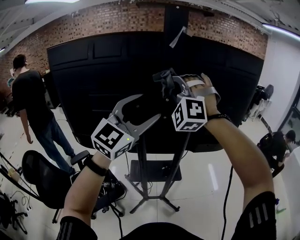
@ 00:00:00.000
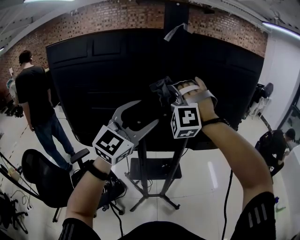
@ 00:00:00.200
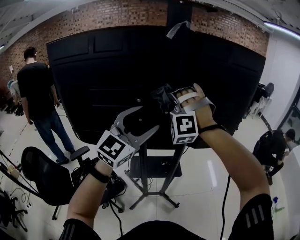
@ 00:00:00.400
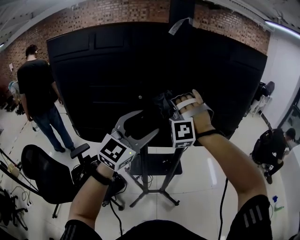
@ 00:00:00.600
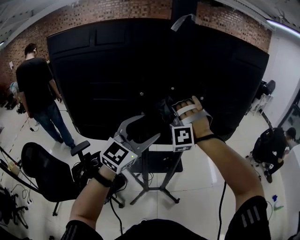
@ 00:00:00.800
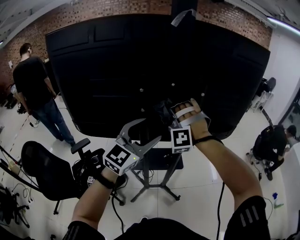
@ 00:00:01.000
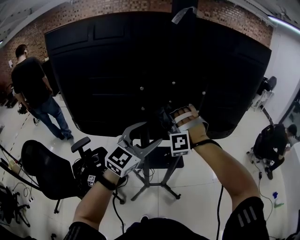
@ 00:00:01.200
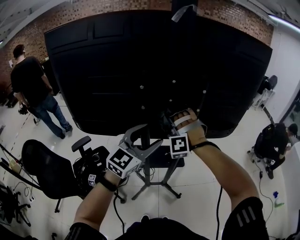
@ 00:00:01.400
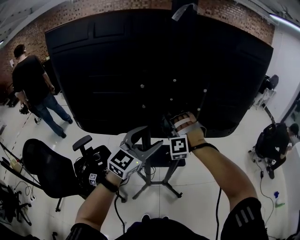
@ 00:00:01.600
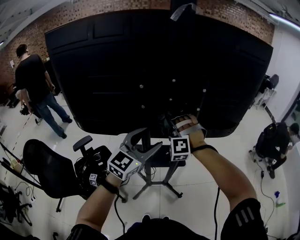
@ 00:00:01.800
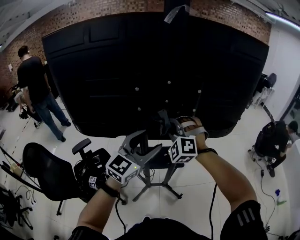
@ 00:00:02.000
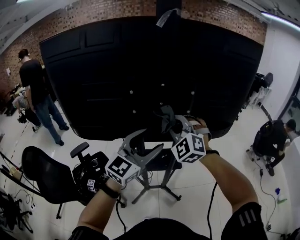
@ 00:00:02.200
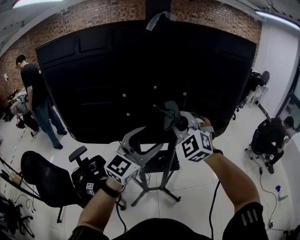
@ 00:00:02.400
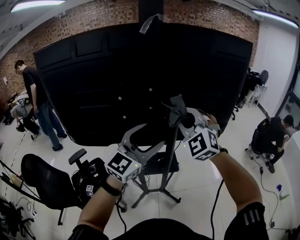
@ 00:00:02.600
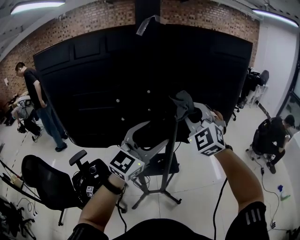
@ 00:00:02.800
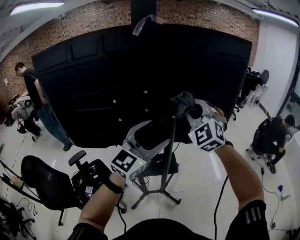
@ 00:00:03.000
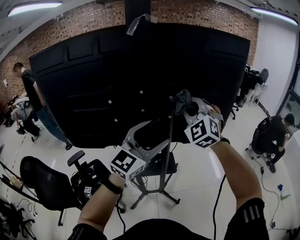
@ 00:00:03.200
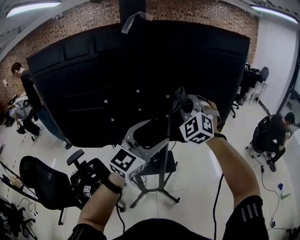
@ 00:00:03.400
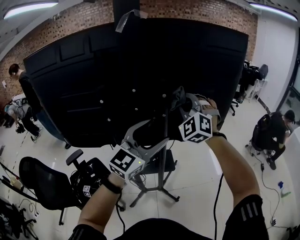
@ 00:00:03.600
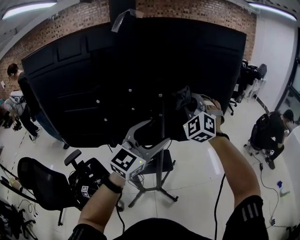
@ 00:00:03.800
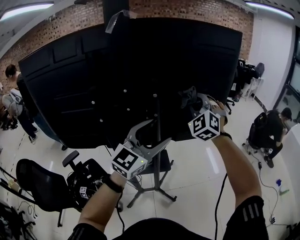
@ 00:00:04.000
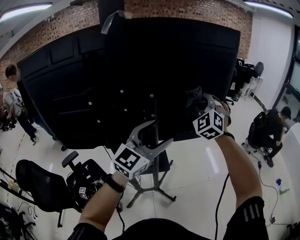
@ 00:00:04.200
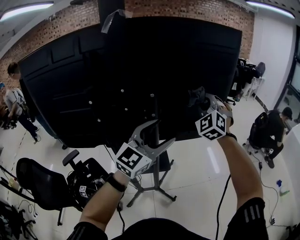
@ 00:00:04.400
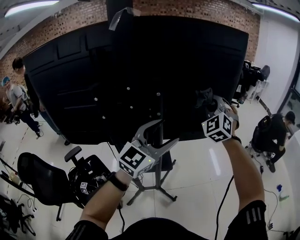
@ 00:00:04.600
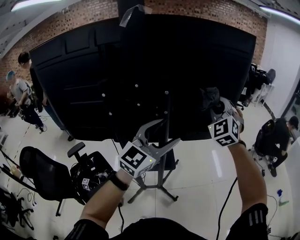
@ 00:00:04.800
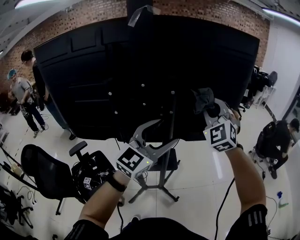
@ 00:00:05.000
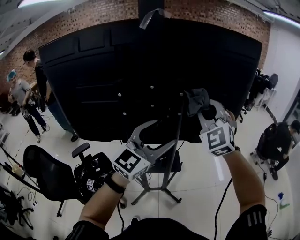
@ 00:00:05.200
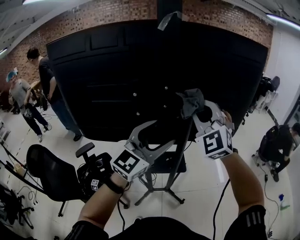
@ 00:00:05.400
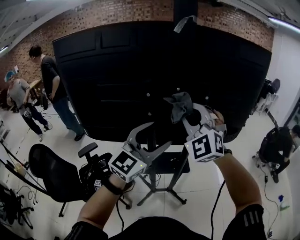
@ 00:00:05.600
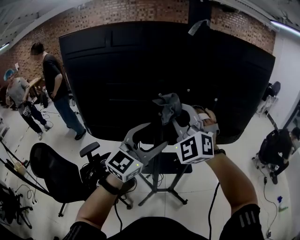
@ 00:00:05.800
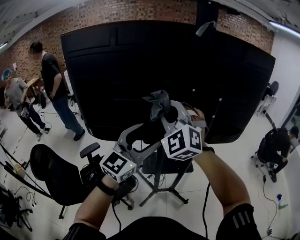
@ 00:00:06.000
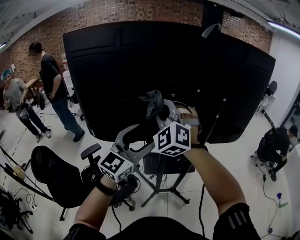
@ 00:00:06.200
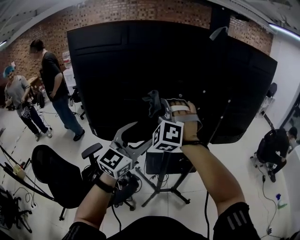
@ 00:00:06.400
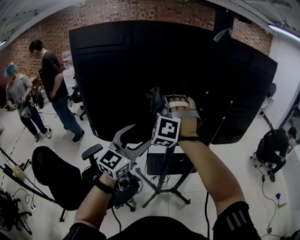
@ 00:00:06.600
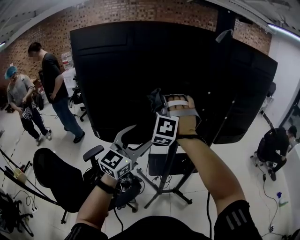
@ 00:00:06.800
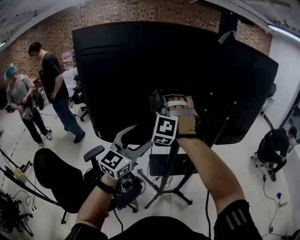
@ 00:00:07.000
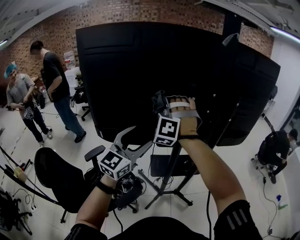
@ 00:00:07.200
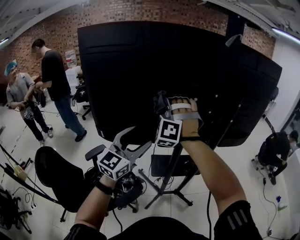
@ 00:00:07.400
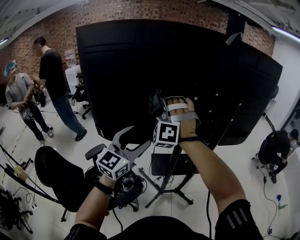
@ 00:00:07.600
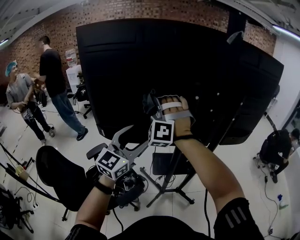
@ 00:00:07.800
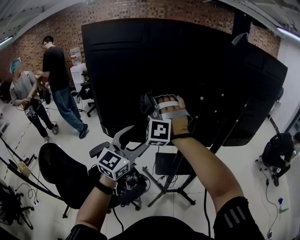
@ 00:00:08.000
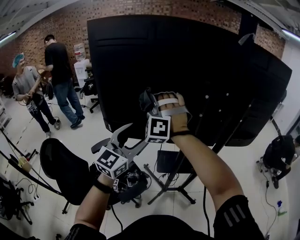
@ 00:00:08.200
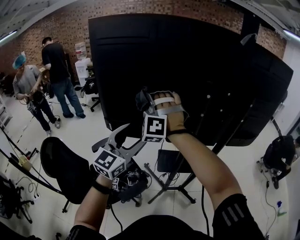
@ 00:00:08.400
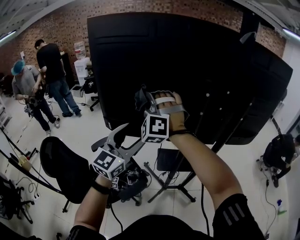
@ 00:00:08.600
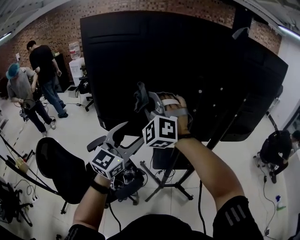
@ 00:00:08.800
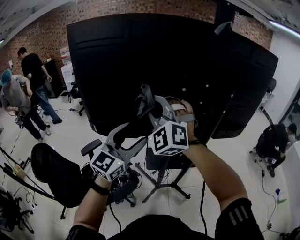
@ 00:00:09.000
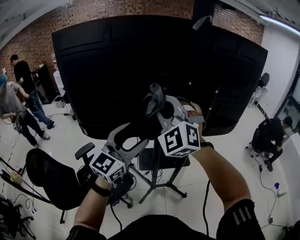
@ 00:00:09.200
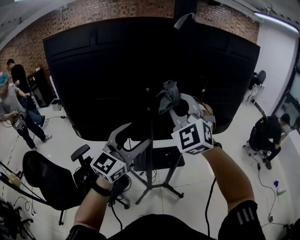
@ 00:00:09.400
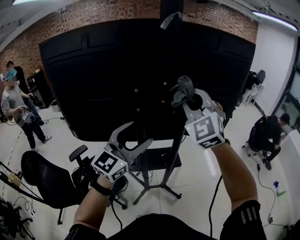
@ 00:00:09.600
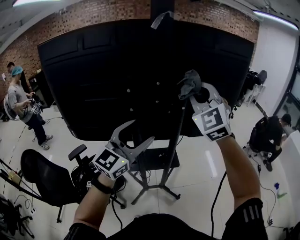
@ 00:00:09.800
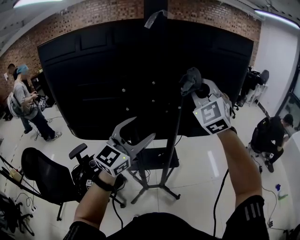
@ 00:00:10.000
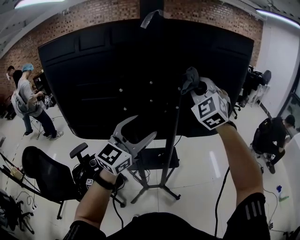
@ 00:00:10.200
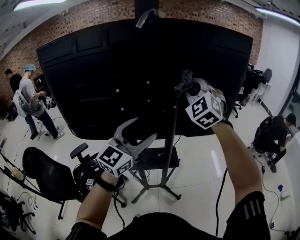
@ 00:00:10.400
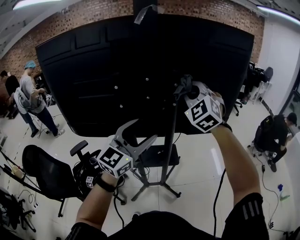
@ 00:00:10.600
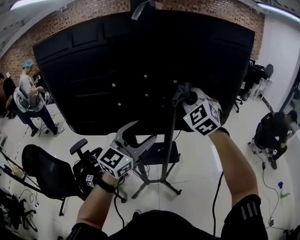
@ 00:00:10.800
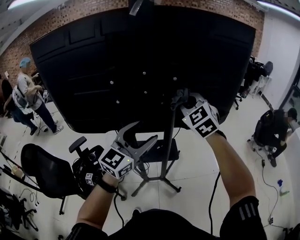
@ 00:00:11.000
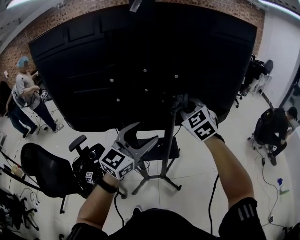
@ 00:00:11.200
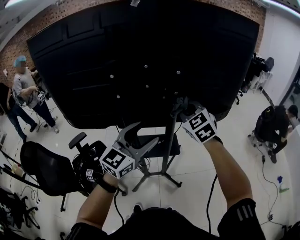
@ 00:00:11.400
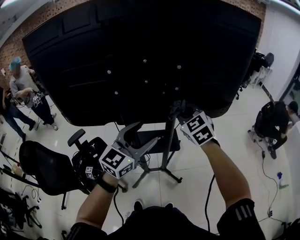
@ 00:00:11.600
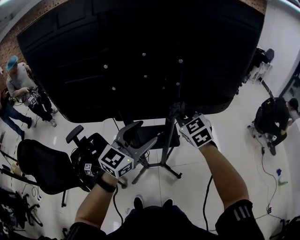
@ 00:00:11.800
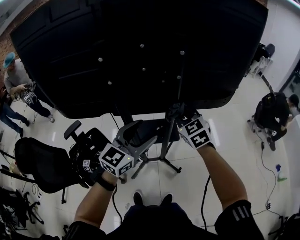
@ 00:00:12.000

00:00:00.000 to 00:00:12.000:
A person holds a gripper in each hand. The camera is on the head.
00:00:00.000 to 00:00:01.600: Both grippers travel together downward, some 25 cm. The right gripper changes its angle by roughly 30 degrees.
00:00:01.600 to 00:00:03.000: The right gripper goes some 25 cm upward and to the right, and twists roughly 50 degrees clockwise, seen from behind. Meanwhile the left gripper goes roughly 15 cm to the right and upward.
00:00:03.000 to 00:00:04.400: The left gripper moves to the right, approximately 10 cm. Meanwhile the right gripper heads to the right and forward, covering some 15 cm.
00:00:04.400 to 00:00:06.000: Both grippers travel together to the left and backward, roughly 35 cm. The right gripper turns by roughly 20 degrees.
00:00:06.000 to 00:00:07.600: The two grippers go approximately 15 cm to the left. The right gripper changes its angle by roughly 40 degrees.
00:00:07.600 to 00:00:09.000: The right gripper heads backward, covering roughly 10 cm, travels to the left and back again, approximately 10 cm each way, and turns by about 30 degrees.
00:00:09.000 to 00:00:10.400: The left gripper travels to the right by approximately 25 cm; the right gripper goes about 40 cm to the right and forward.
00:00:10.400 to 00:00:12.000: The left gripper goes roughly 15 cm downward. The right gripper travels downward by approximately 25 cm, and turns by roughly 40 degrees.

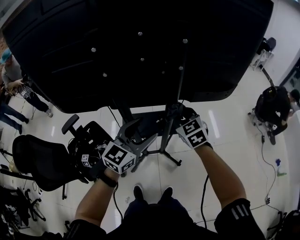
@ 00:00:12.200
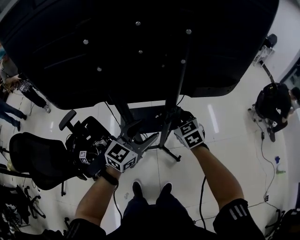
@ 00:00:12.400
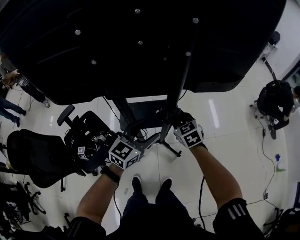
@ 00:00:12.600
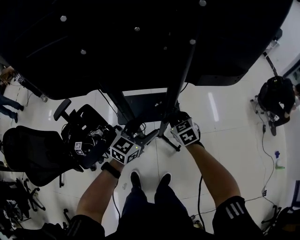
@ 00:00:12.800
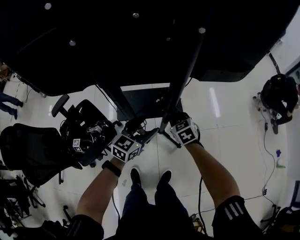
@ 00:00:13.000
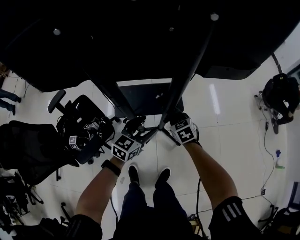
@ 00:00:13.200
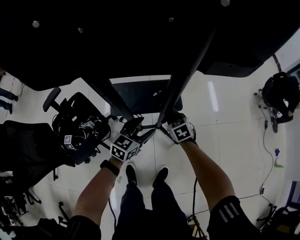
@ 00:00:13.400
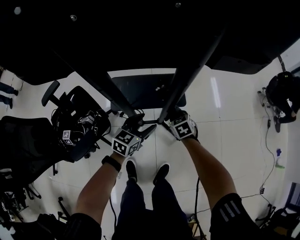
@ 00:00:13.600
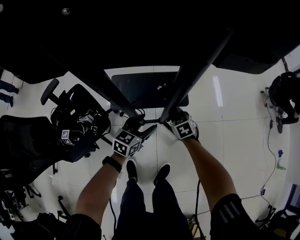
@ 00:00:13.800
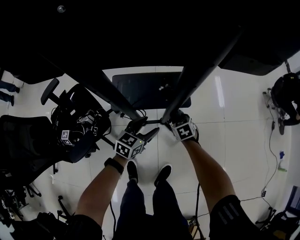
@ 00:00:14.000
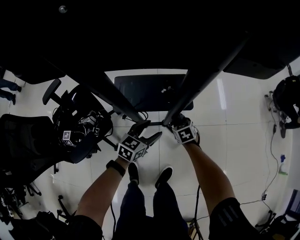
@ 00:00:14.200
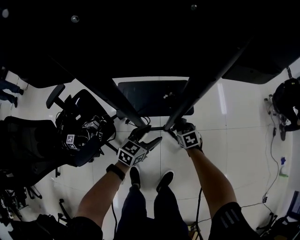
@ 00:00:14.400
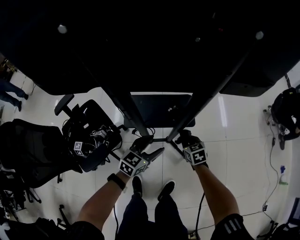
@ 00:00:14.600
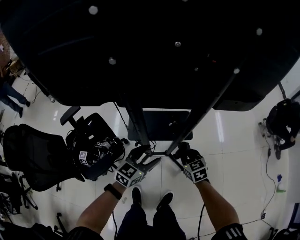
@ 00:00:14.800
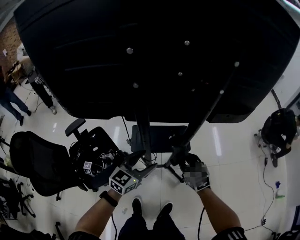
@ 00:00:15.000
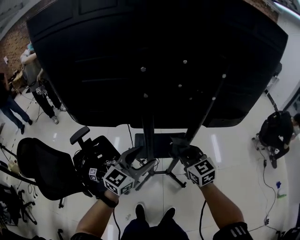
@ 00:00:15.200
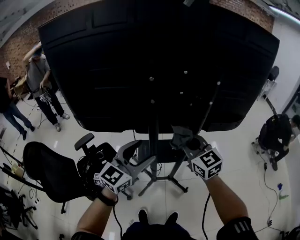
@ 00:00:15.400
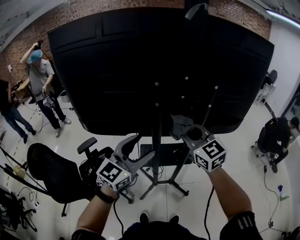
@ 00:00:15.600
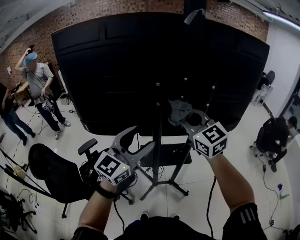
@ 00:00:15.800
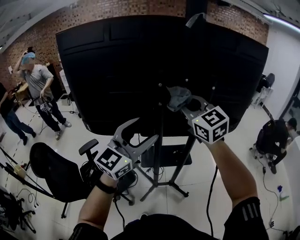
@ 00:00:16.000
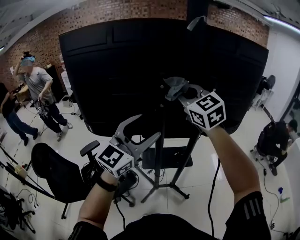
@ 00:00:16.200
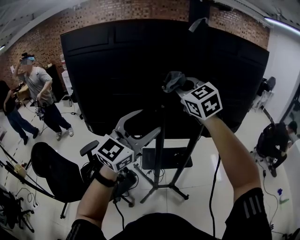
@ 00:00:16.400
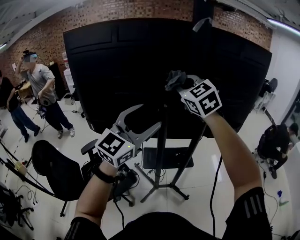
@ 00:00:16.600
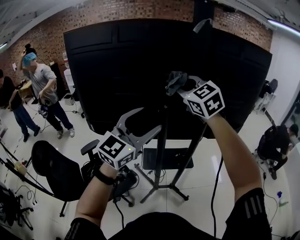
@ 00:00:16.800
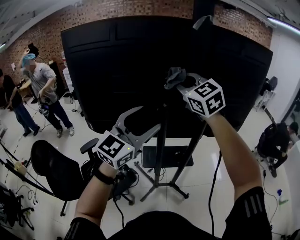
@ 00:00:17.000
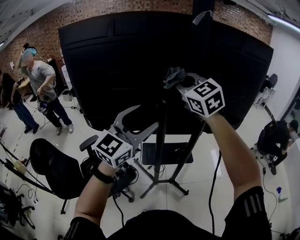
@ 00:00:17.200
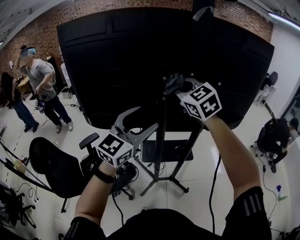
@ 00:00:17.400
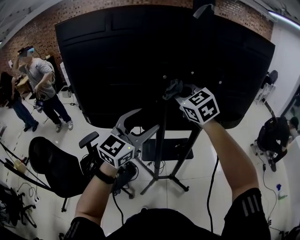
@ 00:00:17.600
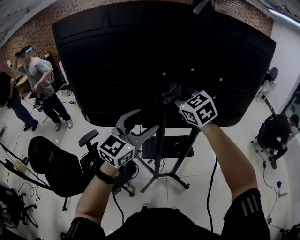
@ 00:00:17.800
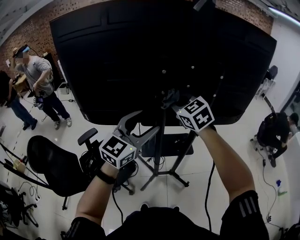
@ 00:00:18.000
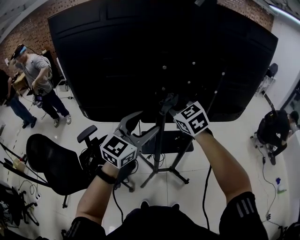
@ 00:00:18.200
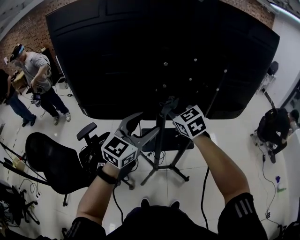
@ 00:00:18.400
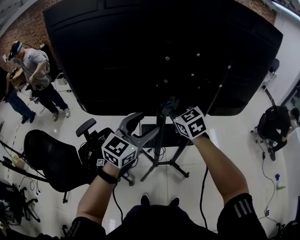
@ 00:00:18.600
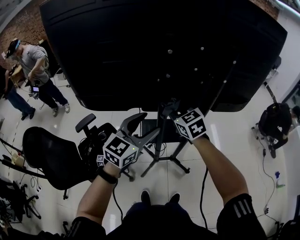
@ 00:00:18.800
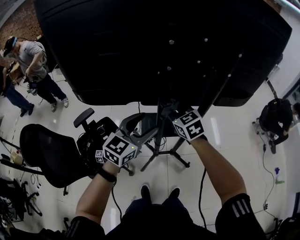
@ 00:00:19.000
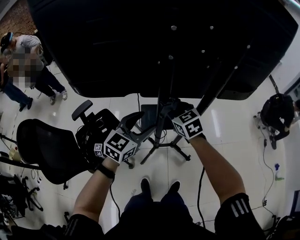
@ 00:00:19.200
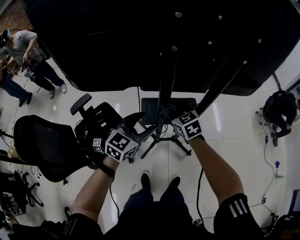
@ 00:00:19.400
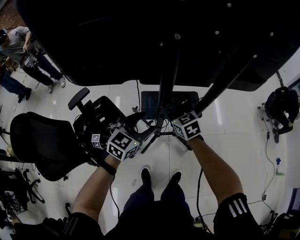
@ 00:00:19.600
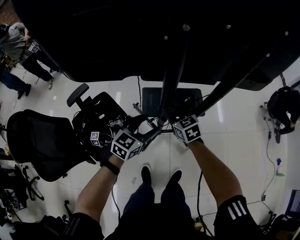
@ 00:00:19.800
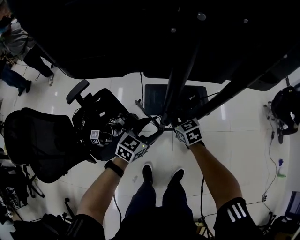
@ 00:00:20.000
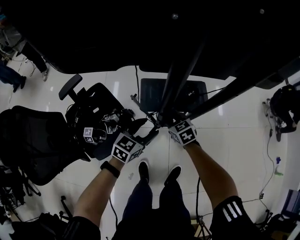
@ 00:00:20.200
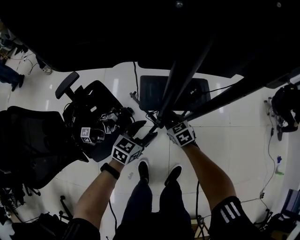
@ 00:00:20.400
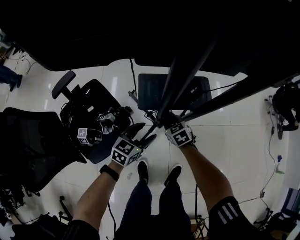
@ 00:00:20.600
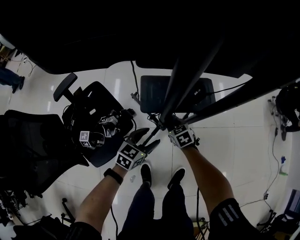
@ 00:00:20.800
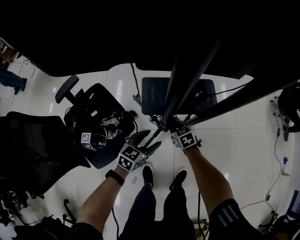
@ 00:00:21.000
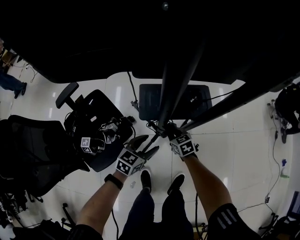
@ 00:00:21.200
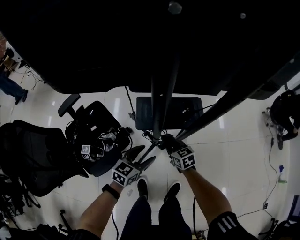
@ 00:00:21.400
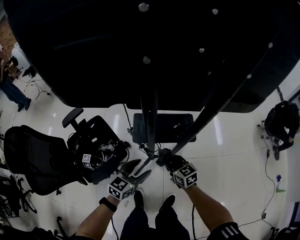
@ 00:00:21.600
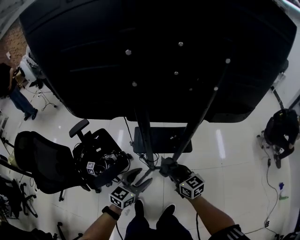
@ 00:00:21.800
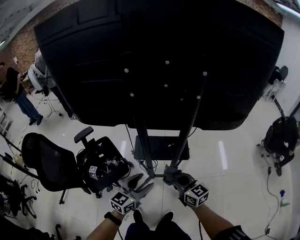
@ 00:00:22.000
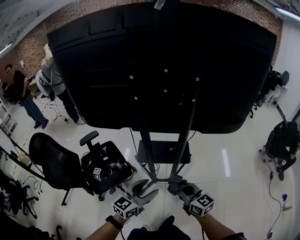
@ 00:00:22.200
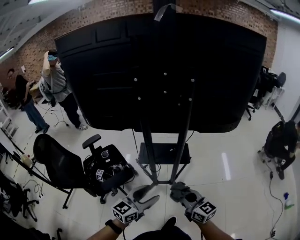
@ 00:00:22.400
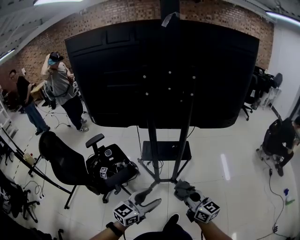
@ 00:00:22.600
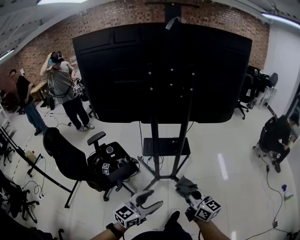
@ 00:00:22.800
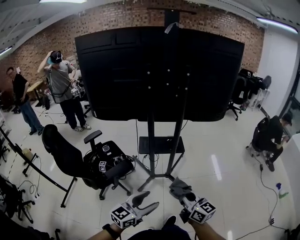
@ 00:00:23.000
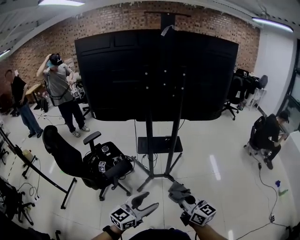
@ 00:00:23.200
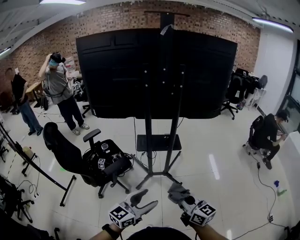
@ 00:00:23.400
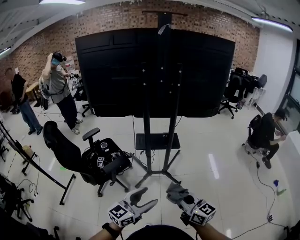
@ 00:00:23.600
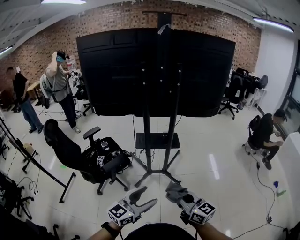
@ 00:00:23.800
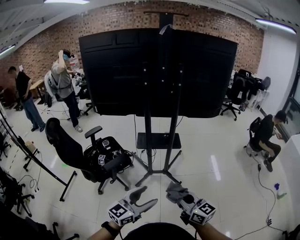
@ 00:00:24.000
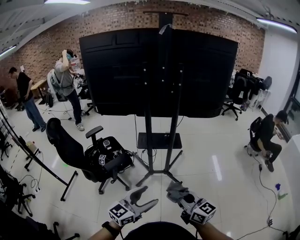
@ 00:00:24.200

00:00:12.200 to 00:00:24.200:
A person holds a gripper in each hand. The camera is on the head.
00:00:12.200 to 00:00:13.800: The grippers both shift downward by roughly 40 cm. The right gripper swivels some 30 degrees. Meanwhile the left gripper turns by roughly 30 degrees.
00:00:13.800 to 00:00:15.200: Both grippers travel together upward, roughly 40 cm. The right gripper points its fingers roughly 40 degrees further upward; the left gripper swivels about 30 degrees.
00:00:15.200 to 00:00:16.600: The two grippers go approximately 30 cm upward. The right gripper rotates roughly 30 degrees; the left gripper rotates about 30 degrees.
00:00:16.600 to 00:00:18.200: The left gripper heads downward, covering about 10 cm, while the right gripper goes approximately 20 cm downward.
00:00:18.200 to 00:00:19.800: The grippers both shift downward by roughly 35 cm. The right gripper turns by some 30 degrees; the left gripper rotates about 30 degrees.
00:00:19.800 to 00:00:21.200: Both grippers travel together downward, approximately 20 cm.
00:00:21.200 to 00:00:22.600: The grippers both shift upward and backward by some 50 cm. The right gripper angles its fingers upward, by approximately 40 degrees; the left gripper turns by roughly 20 degrees.
00:00:22.600 to 00:00:24.200: Both grippers travel together backward, about 20 cm.
